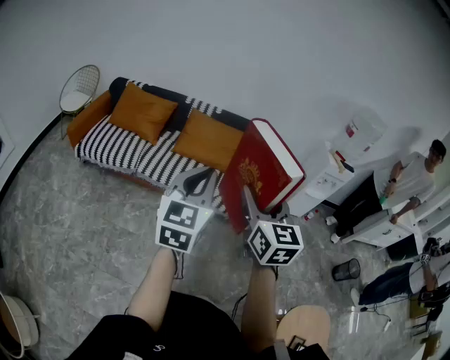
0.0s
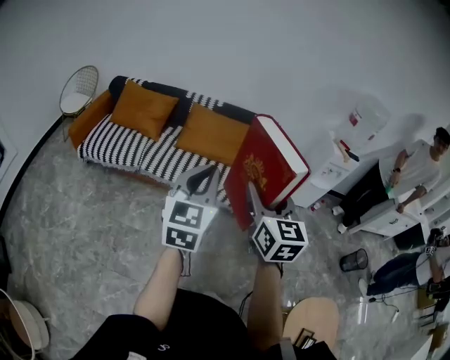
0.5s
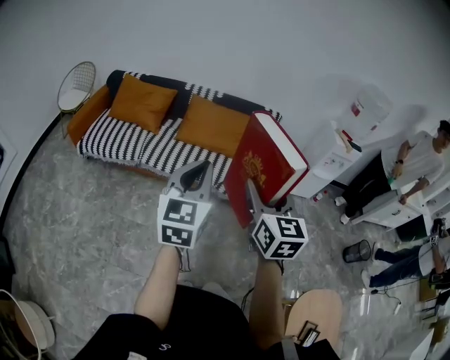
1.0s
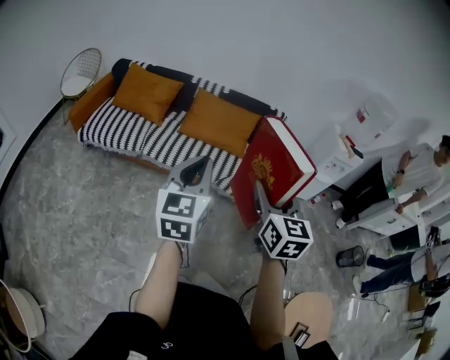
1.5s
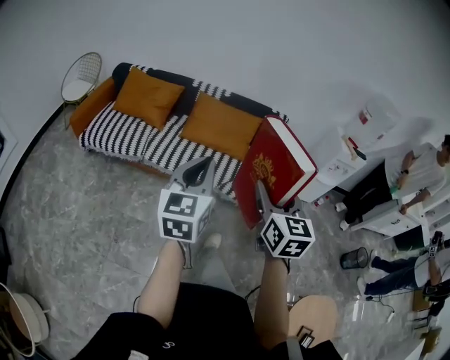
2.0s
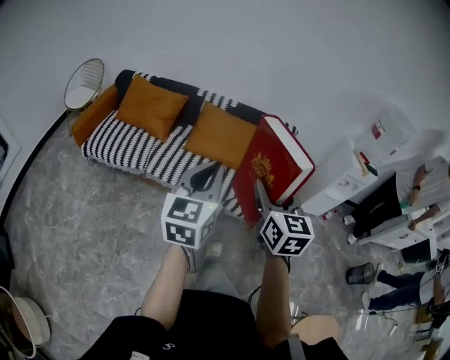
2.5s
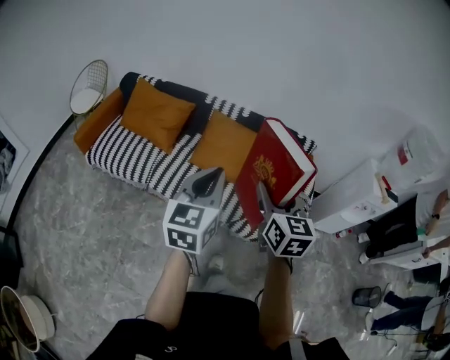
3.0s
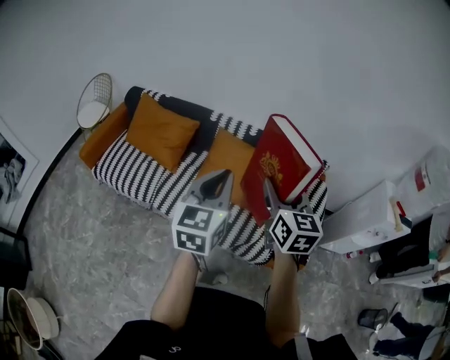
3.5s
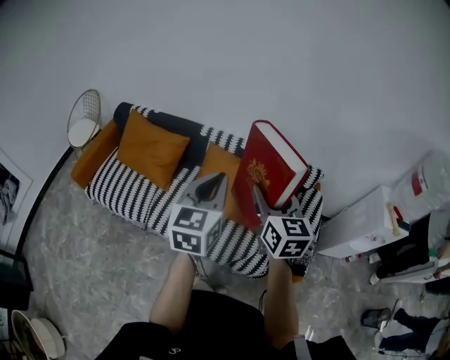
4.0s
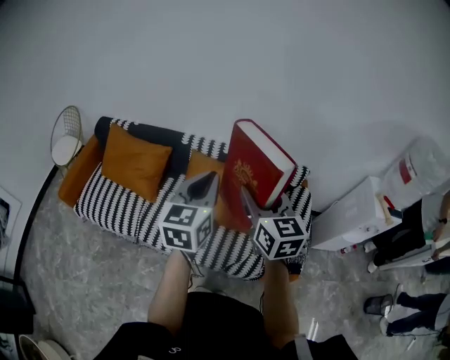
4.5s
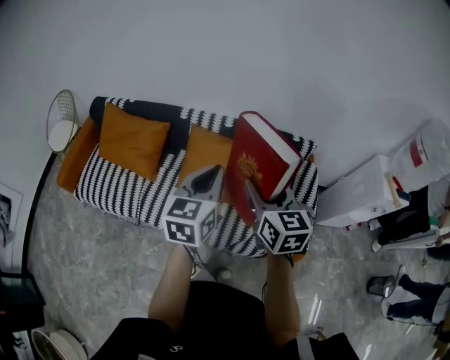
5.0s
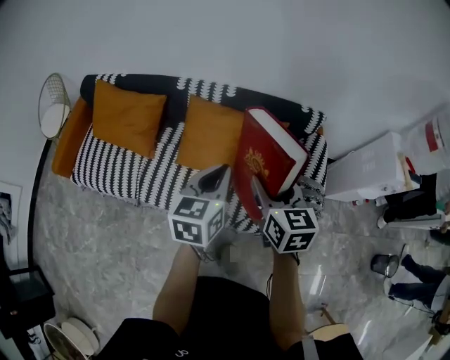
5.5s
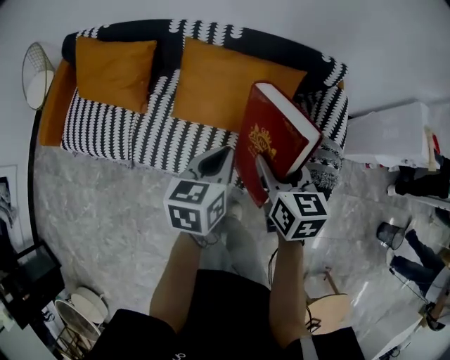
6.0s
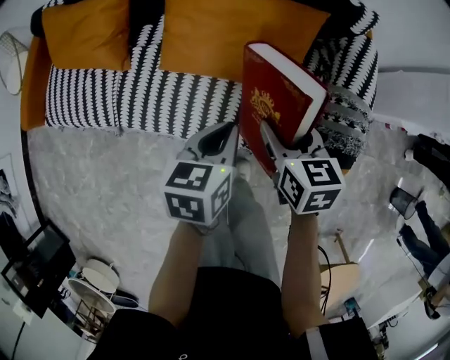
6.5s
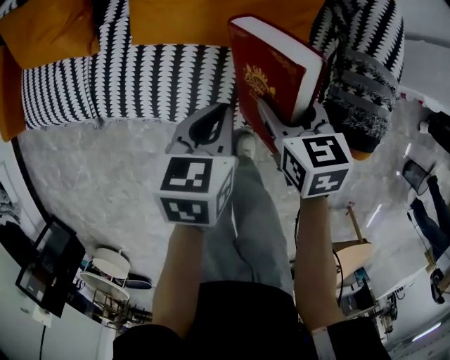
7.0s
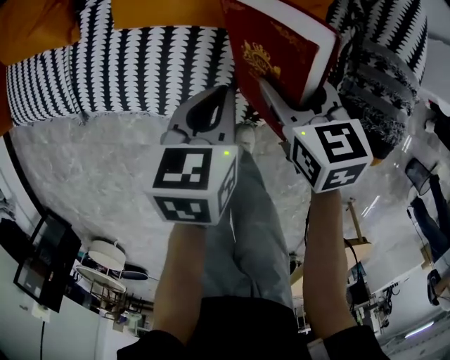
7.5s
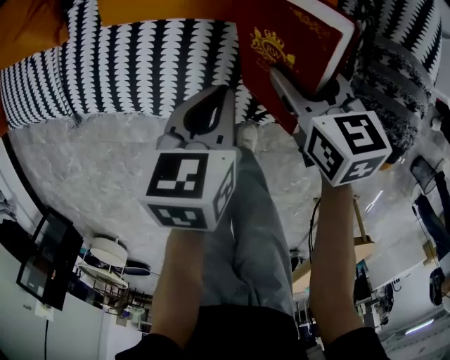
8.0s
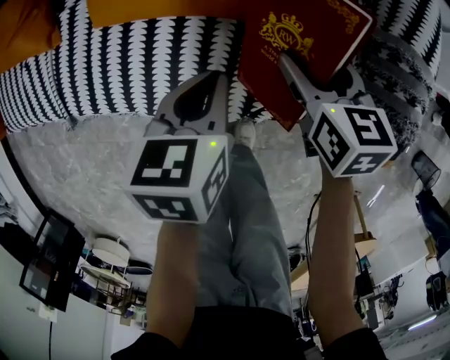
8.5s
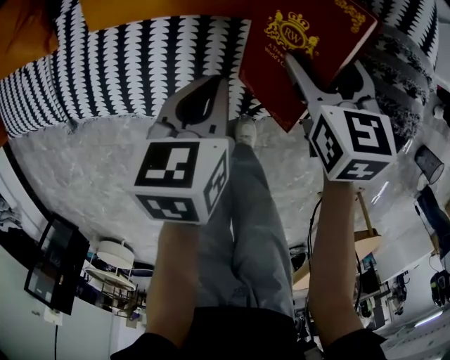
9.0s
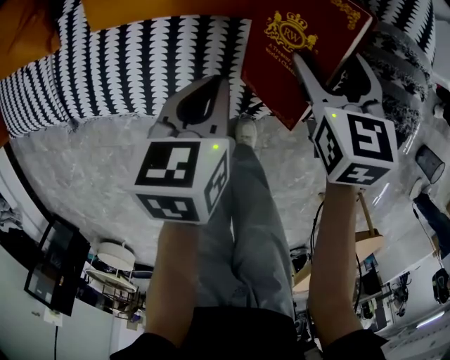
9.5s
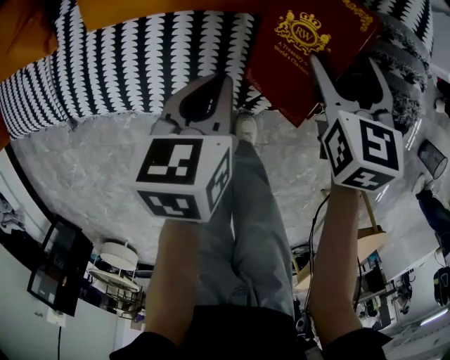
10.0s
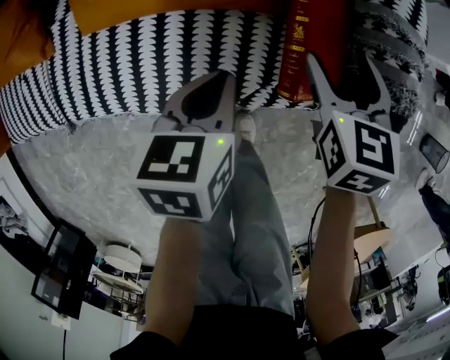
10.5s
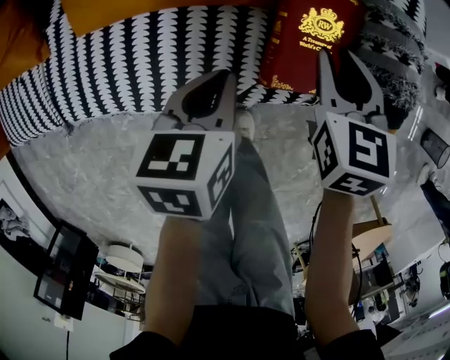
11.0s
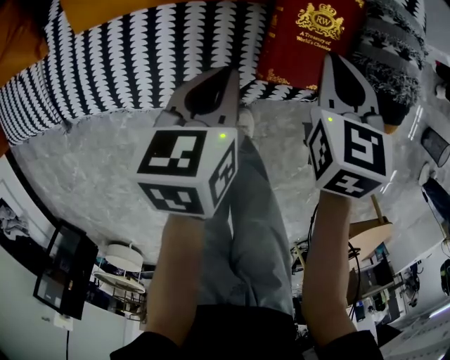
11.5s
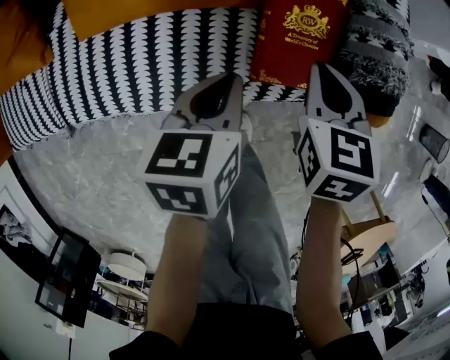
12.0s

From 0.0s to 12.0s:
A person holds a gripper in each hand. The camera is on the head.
From 0.0s to 2.0s: The right gripper changes place by roughly 5 cm. The left gripper ends up some 5 cm from where it was.
From 2.0s to 4.0s: The pair of grippers is taken forward, some 50 cm.
From 4.0s to 6.0s: Both grippers move downward, approximately 25 cm. The left gripper rotates roughly 30 degrees. Meanwhile the right gripper rotates approximately 30 degrees.
From 6.0s to 8.0s: The two grippers go approximately 30 cm downward.
From 8.0s to 10.0s: The left gripper is displaced to the right by about 5 cm, while the right gripper heads to the right, covering roughly 15 cm, turns by approximately 30 degrees, and opens its fingers.
From 10.0s to 12.0s: The two grippers go about 10 cm to the right. The right gripper closes its fingers.

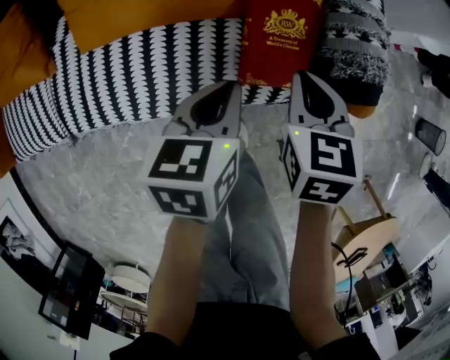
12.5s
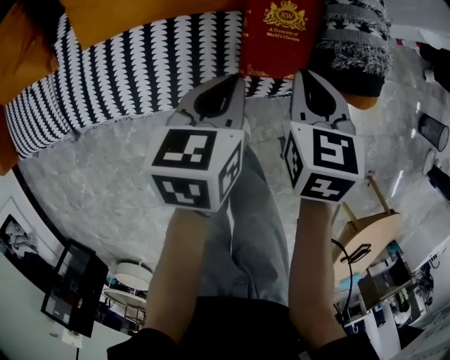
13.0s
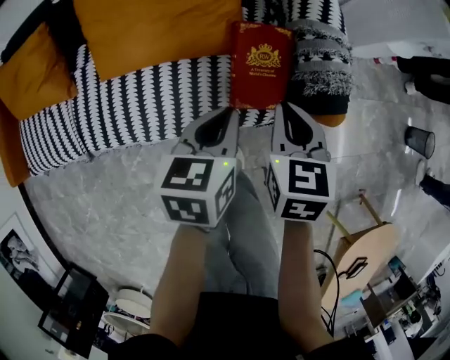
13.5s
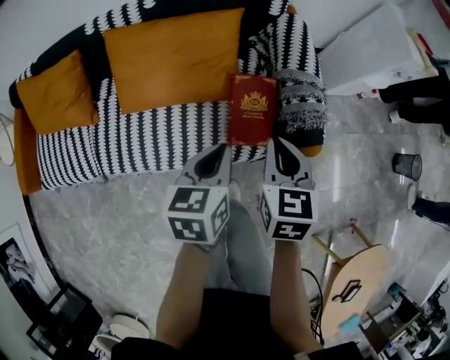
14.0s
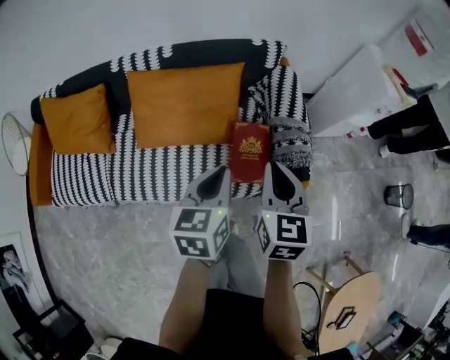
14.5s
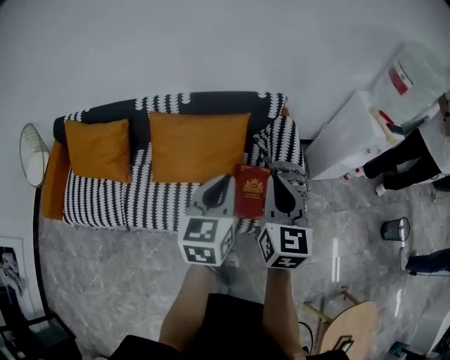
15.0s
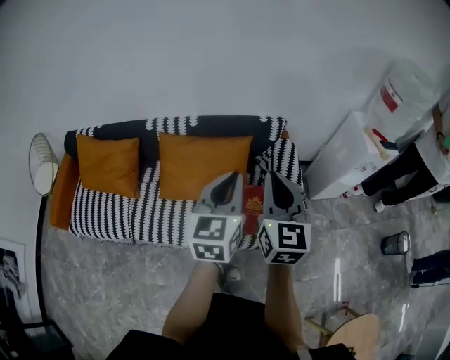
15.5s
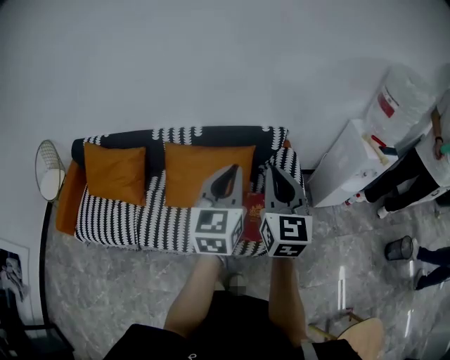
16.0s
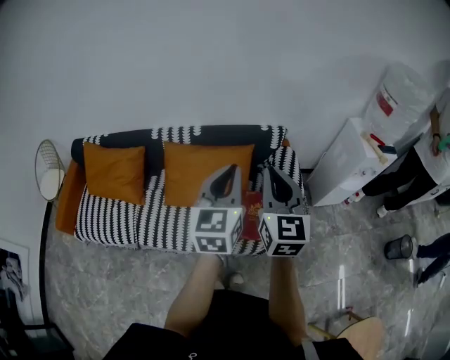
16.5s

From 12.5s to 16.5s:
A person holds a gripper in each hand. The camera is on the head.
From 12.5s to 14.5s: The two grippers go approximately 25 cm upward. The right gripper changes its angle by roughly 20 degrees.
From 14.5s to 16.5s: Both grippers move upward, approximately 20 cm. The right gripper changes its angle by roughly 20 degrees, while the left gripper changes its angle by approximately 30 degrees.

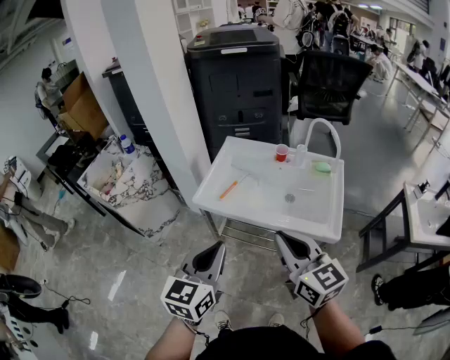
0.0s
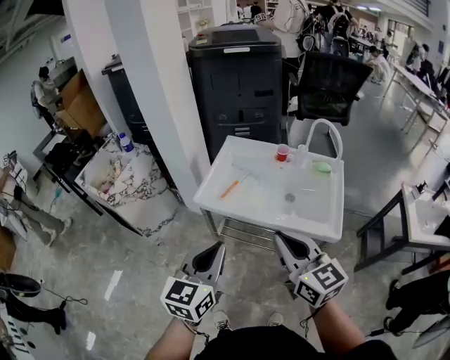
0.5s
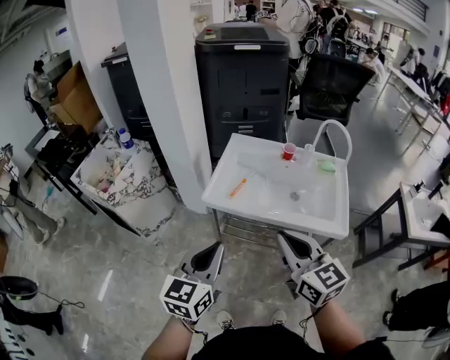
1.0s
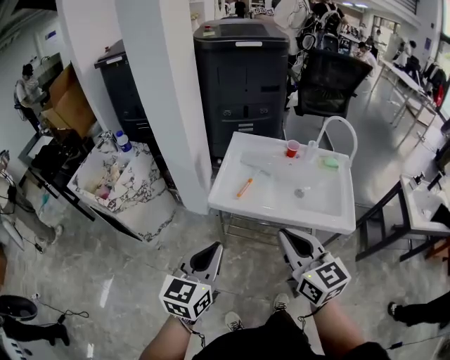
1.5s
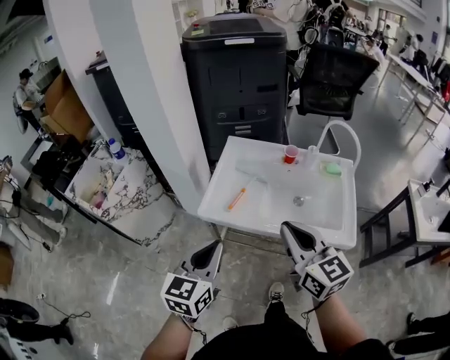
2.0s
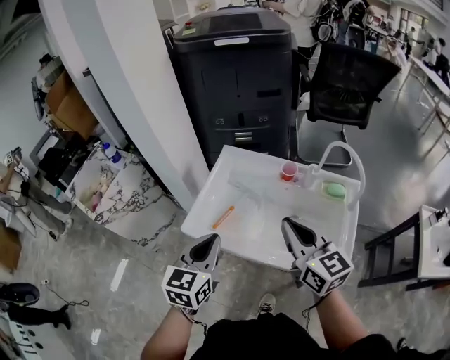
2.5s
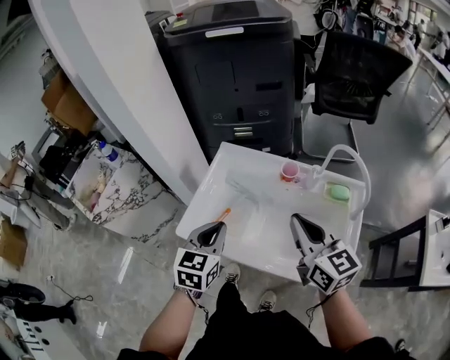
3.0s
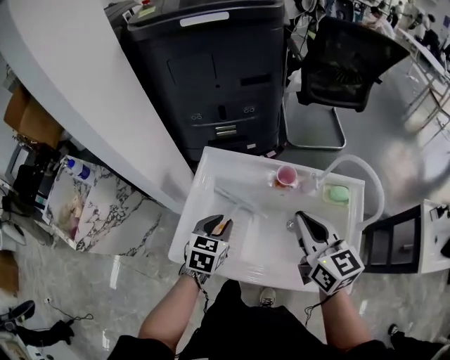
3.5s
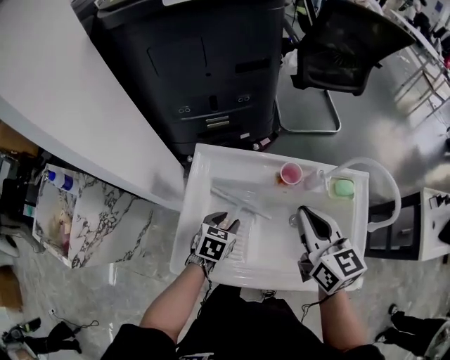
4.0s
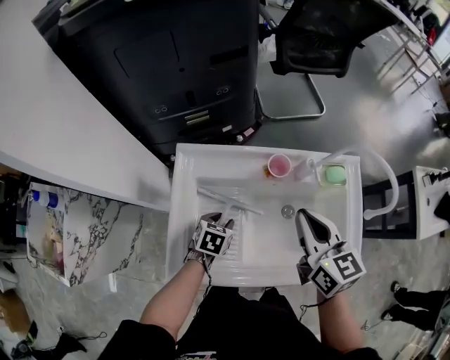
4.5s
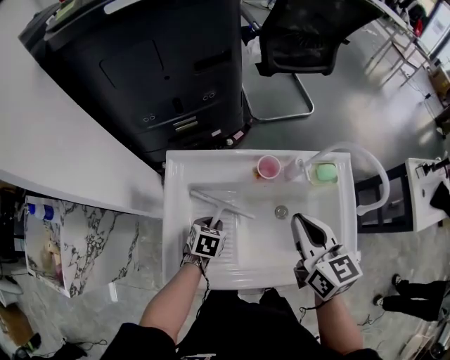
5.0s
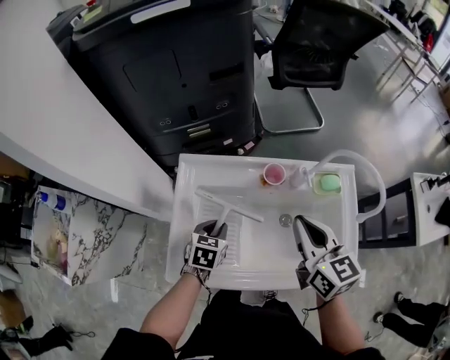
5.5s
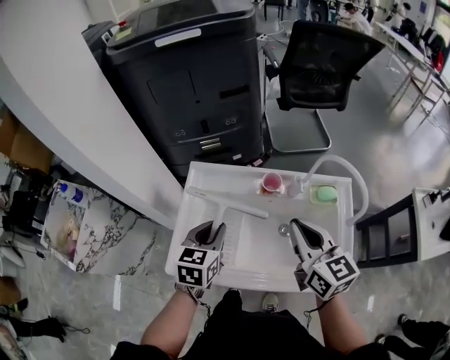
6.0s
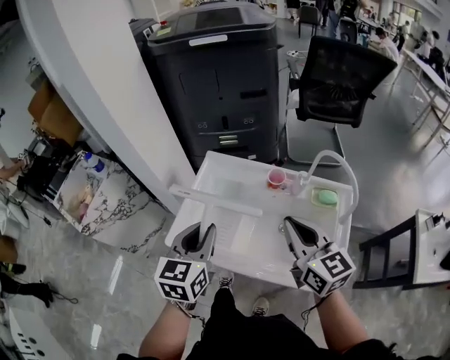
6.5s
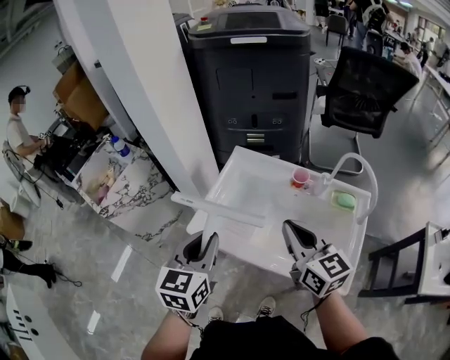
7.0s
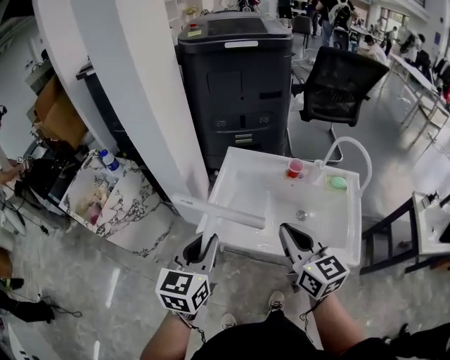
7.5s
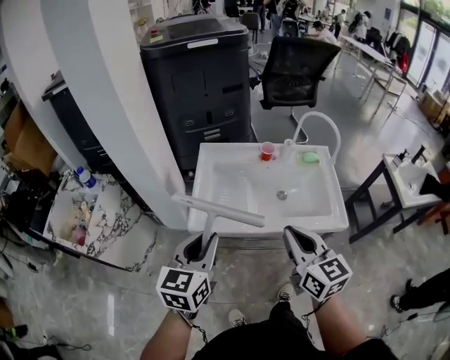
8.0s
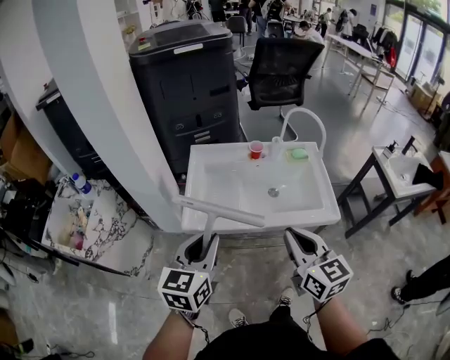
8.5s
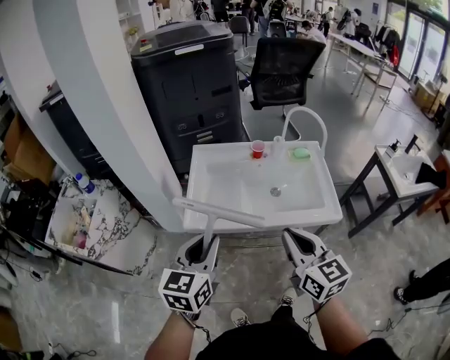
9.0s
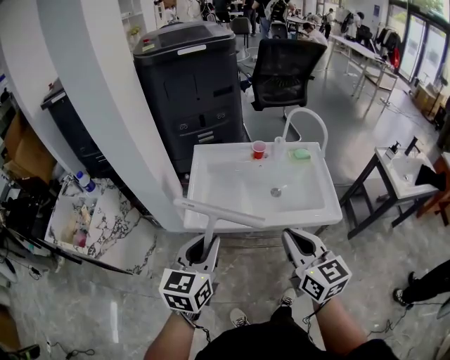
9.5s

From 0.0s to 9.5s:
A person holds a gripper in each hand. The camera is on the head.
From 0.0s to 2.0s: The two grippers go some 15 cm forward and to the left.
From 2.0s to 4.0s: The left gripper is displaced forward and downward by about 50 cm, angles its fingers downward, by some 40 degrees, and opens its fingers; the right gripper travels forward by some 30 cm.
From 4.0s to 5.5s: The left gripper travels downward and back again, approximately 5 cm each way, and closes.
From 5.5s to 7.5s: The left gripper moves approximately 40 cm, and angles its fingers upward, by some 30 degrees, while the right gripper ends up approximately 25 cm from where it was.
From 7.5s to 9.5s: The right gripper goes about 15 cm backward, while the left gripper travels backward by approximately 10 cm.

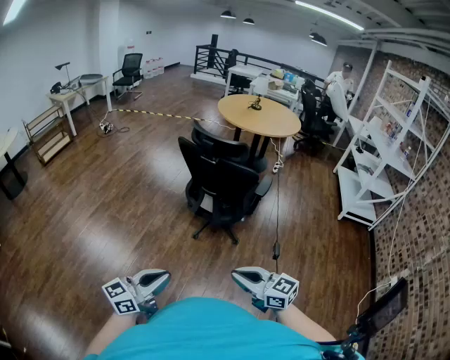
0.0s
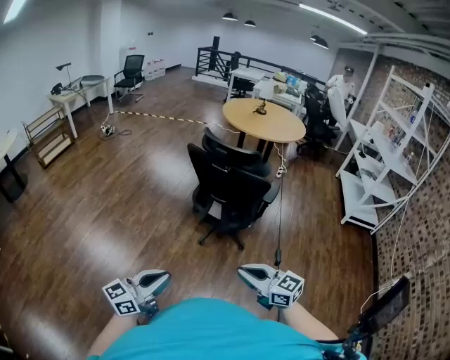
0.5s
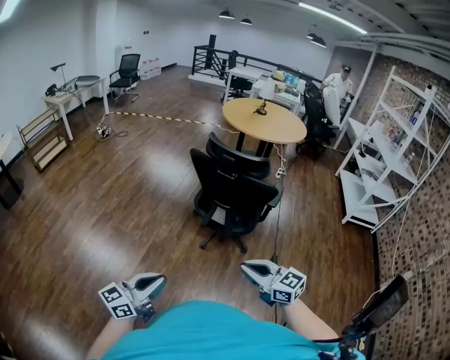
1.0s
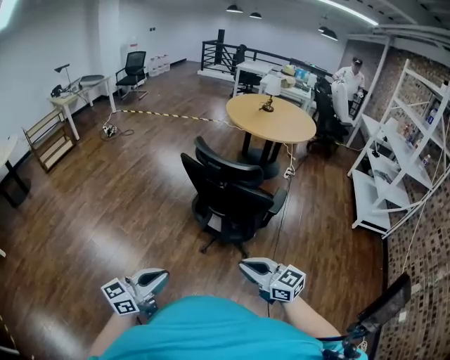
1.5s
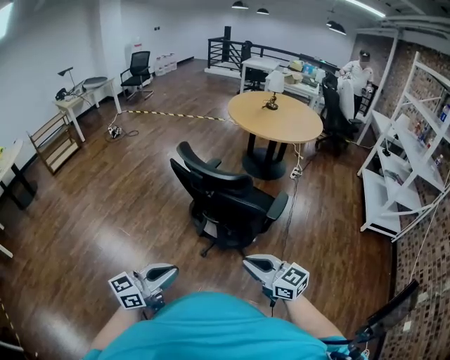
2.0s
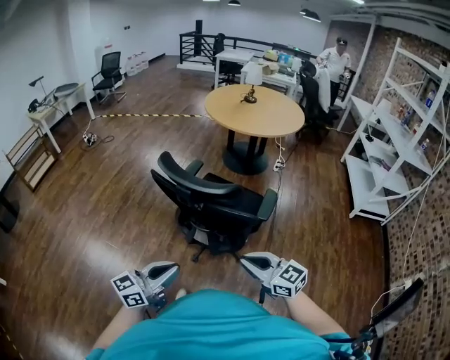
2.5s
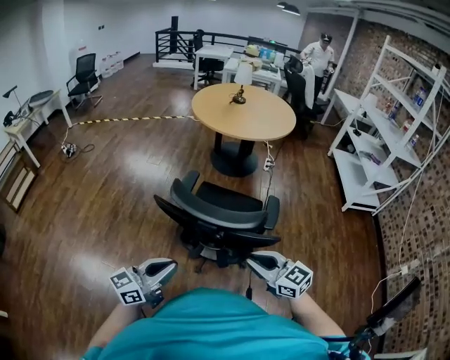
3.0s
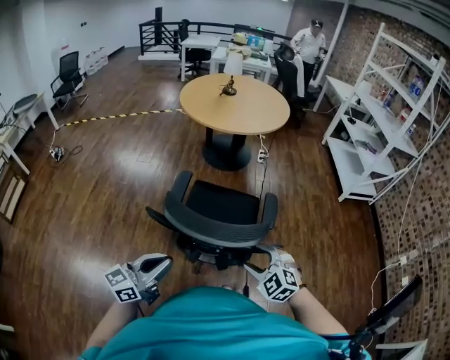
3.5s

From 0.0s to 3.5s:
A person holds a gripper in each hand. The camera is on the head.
From 0.0s to 2.0s: Both grippers move forward and to the right, about 35 cm.
From 2.0s to 3.5s: The right gripper moves approximately 35 cm, changes its angle by about 60 degrees, and opens; the left gripper moves about 40 cm.
